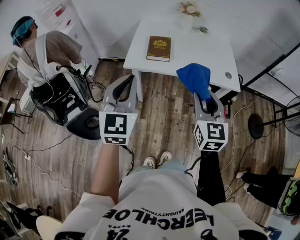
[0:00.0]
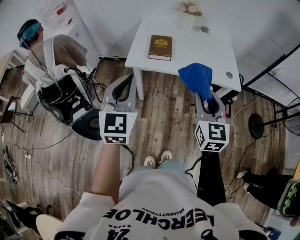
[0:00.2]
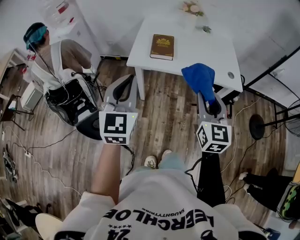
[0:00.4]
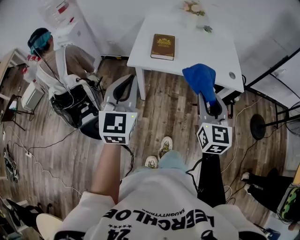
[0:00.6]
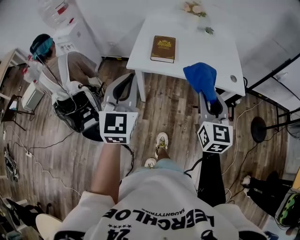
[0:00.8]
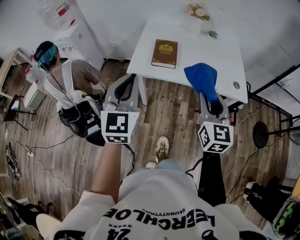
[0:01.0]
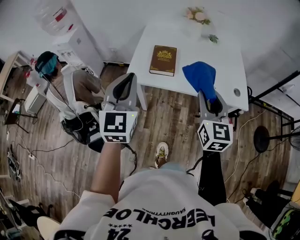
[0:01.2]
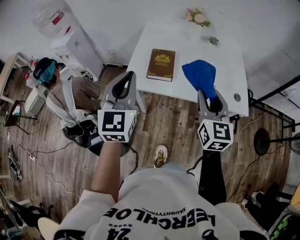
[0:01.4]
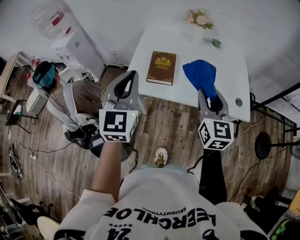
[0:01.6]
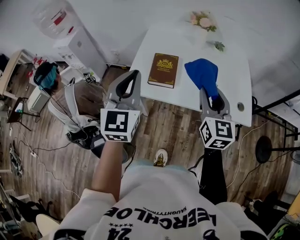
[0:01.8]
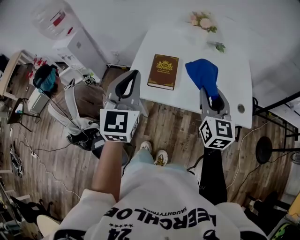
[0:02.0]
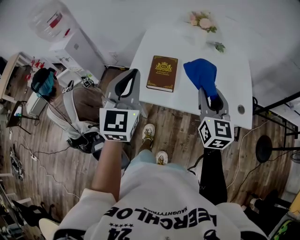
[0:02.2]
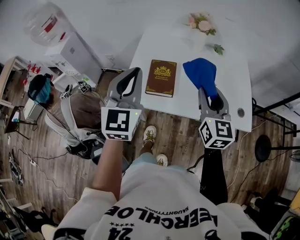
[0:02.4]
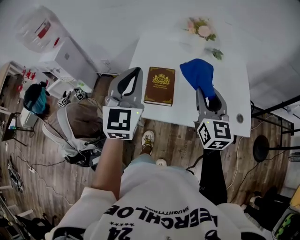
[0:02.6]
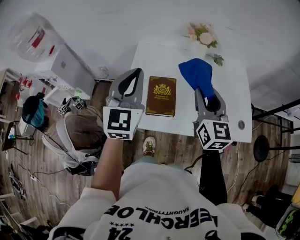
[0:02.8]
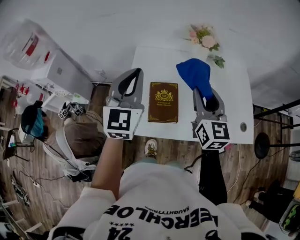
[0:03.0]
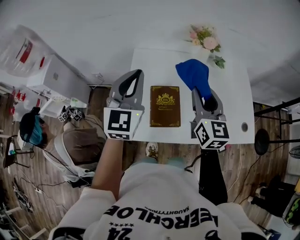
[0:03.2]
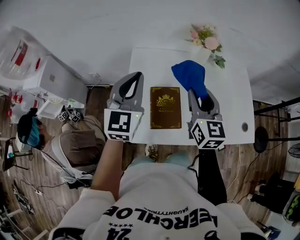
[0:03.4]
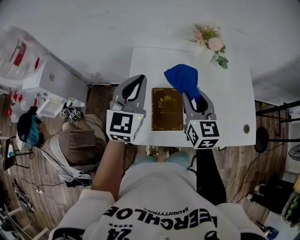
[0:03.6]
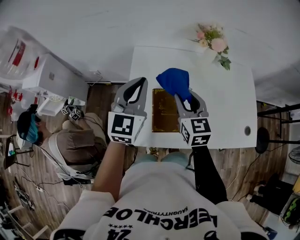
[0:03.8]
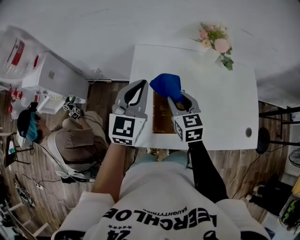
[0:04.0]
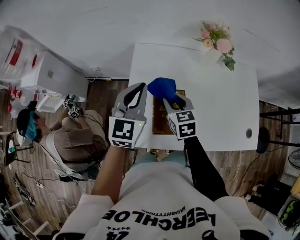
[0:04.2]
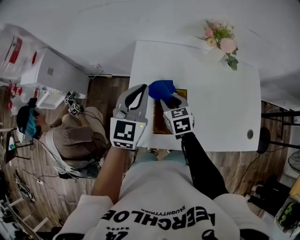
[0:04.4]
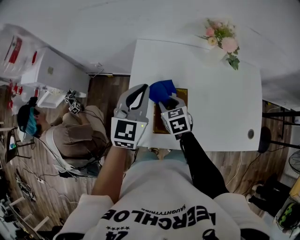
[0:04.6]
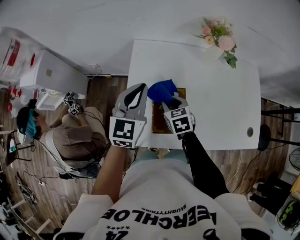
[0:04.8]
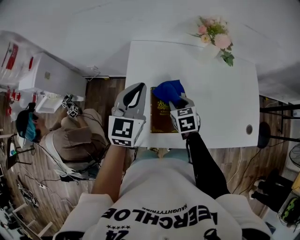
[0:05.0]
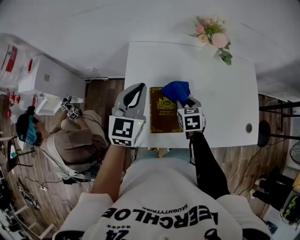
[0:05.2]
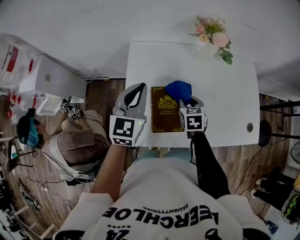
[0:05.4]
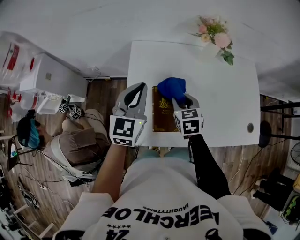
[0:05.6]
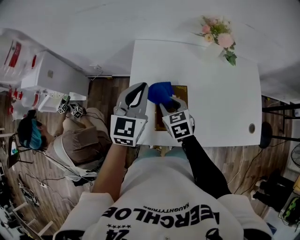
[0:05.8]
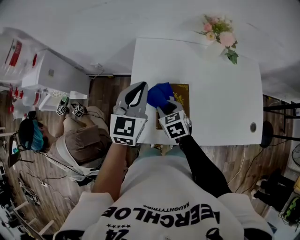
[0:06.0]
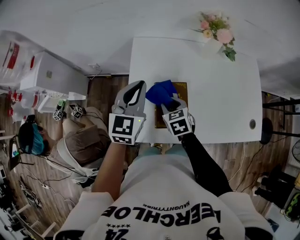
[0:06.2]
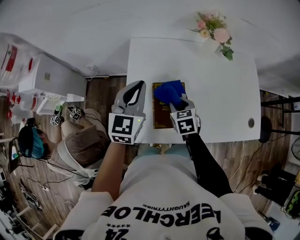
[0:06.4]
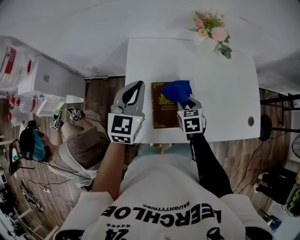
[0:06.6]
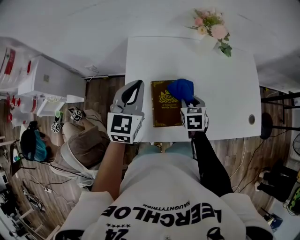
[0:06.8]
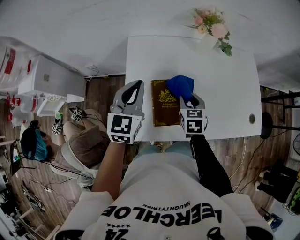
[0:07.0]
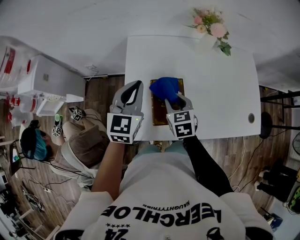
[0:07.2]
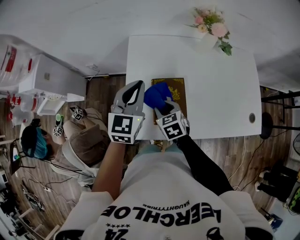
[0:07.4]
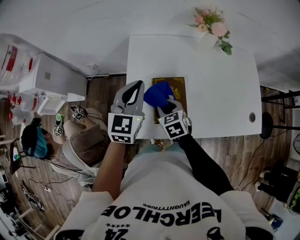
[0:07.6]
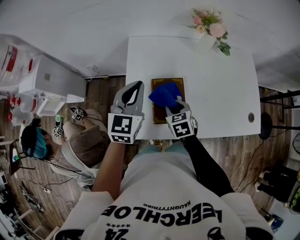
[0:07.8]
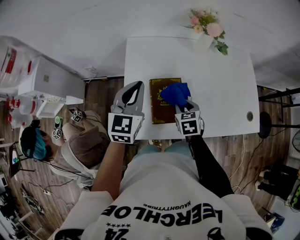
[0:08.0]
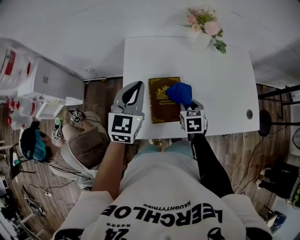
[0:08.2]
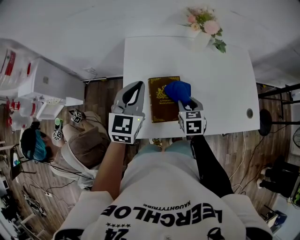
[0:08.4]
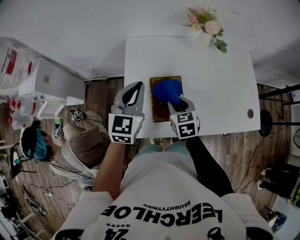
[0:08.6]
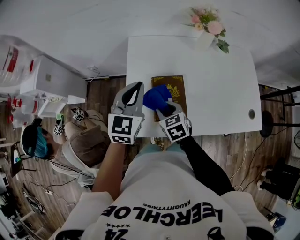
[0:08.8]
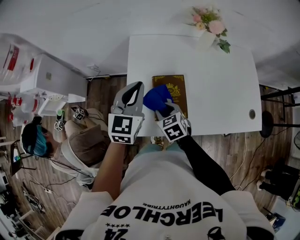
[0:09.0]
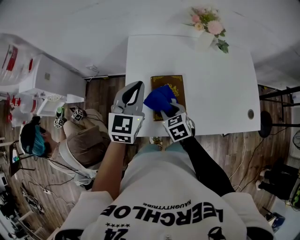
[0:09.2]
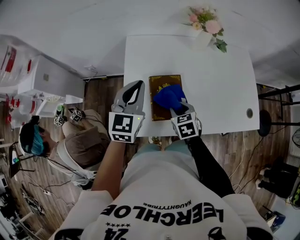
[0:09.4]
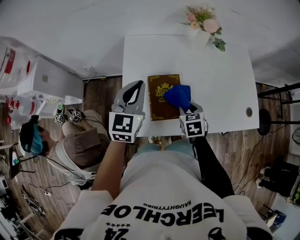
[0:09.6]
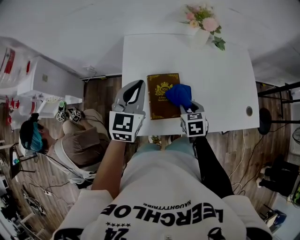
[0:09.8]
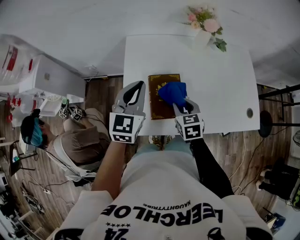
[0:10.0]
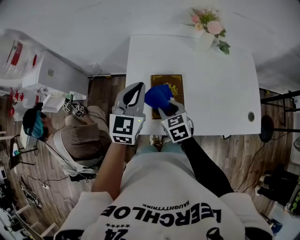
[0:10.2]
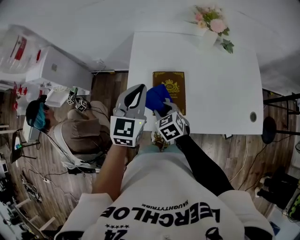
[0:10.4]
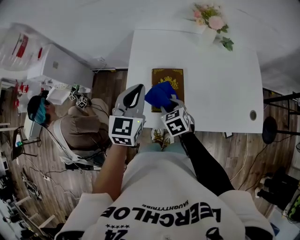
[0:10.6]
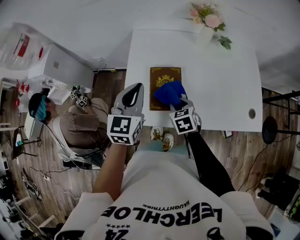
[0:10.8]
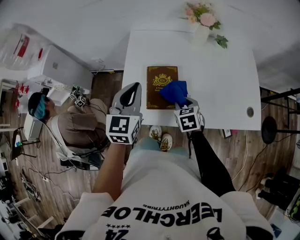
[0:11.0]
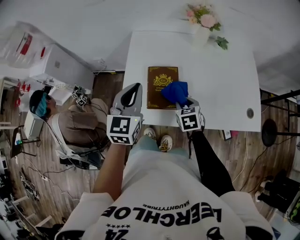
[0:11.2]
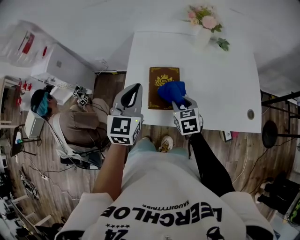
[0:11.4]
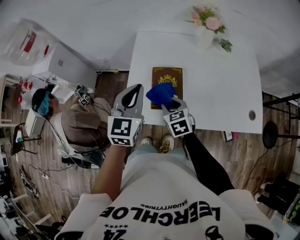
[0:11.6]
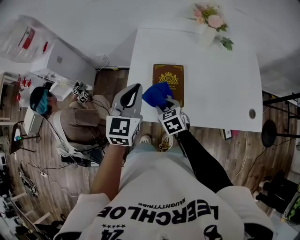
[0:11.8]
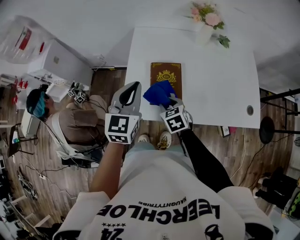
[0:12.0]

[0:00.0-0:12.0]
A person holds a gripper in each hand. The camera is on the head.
0:00.0 to 0:01.6: The grippers both shift forward by about 20 cm.
0:01.6 to 0:03.0: Both grippers move forward, approximately 25 cm.
0:03.0 to 0:04.4: The right gripper moves downward and to the left, about 30 cm, and tilts its fingers some 40 degrees downward. Meanwhile the left gripper goes some 15 cm downward and forward.
0:04.4 to 0:06.0: The right gripper heads backward, covering about 5 cm, and reaches roughly 10 cm to the right, then returns.
0:06.0 to 0:07.6: The right gripper goes to the right and returns, approximately 15 cm each way.
0:07.6 to 0:09.0: The right gripper reaches some 15 cm to the right, then returns.
0:09.0 to 0:10.4: The right gripper moves some 15 cm to the right and comes back.
0:10.4 to 0:12.0: The right gripper travels to the right and back again, roughly 15 cm each way; the left gripper moves backward, roughly 5 cm.

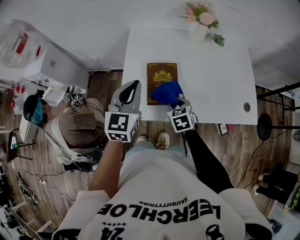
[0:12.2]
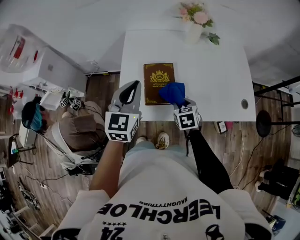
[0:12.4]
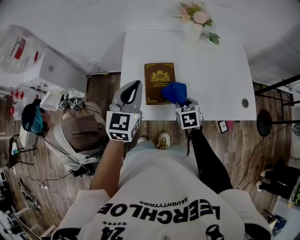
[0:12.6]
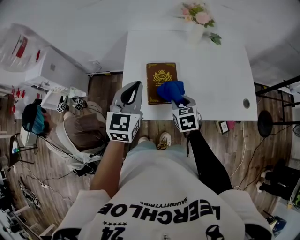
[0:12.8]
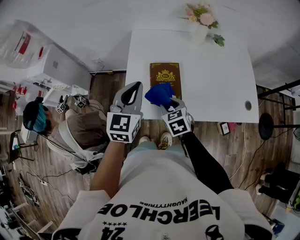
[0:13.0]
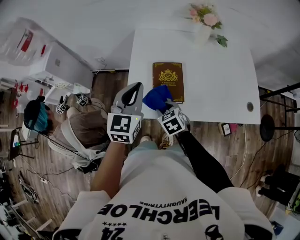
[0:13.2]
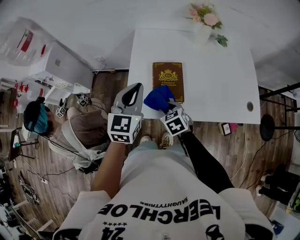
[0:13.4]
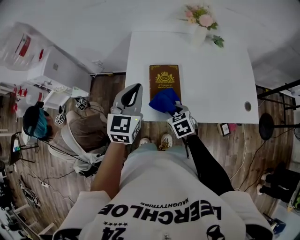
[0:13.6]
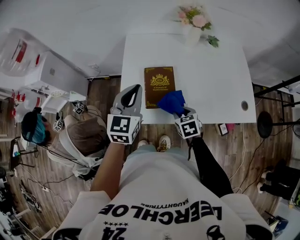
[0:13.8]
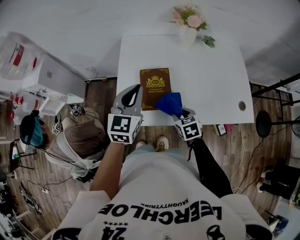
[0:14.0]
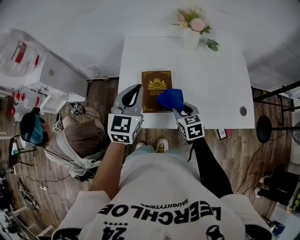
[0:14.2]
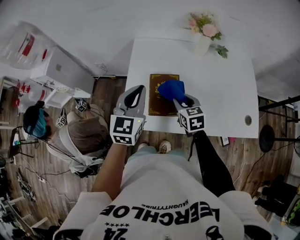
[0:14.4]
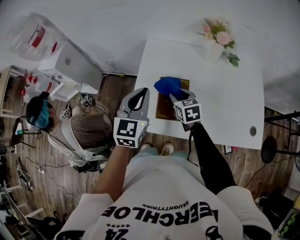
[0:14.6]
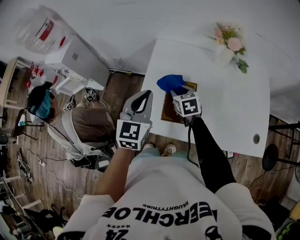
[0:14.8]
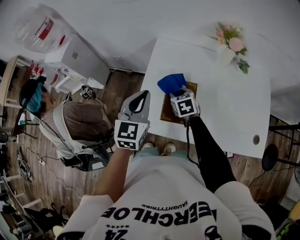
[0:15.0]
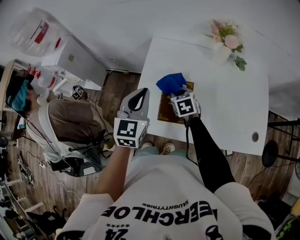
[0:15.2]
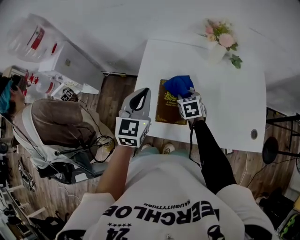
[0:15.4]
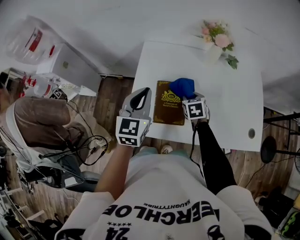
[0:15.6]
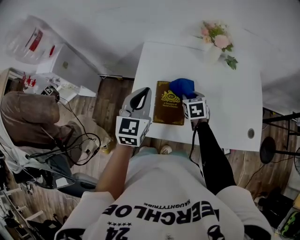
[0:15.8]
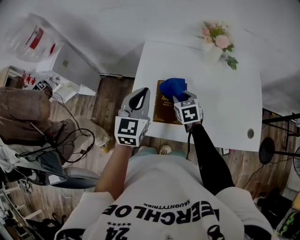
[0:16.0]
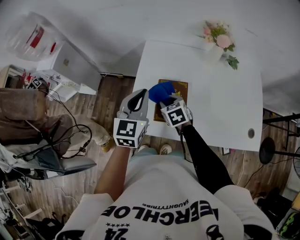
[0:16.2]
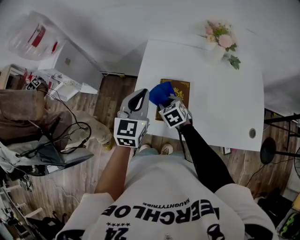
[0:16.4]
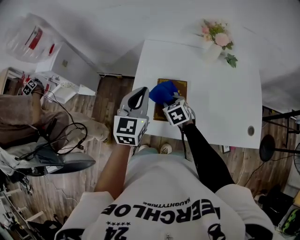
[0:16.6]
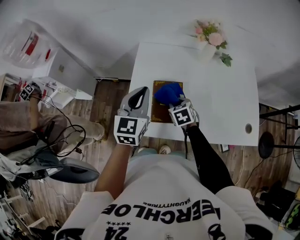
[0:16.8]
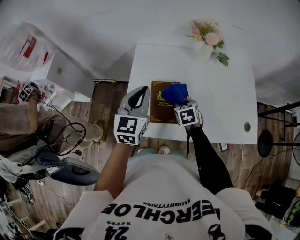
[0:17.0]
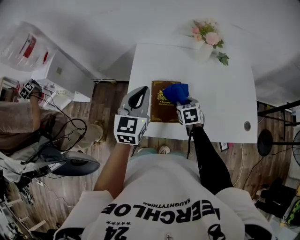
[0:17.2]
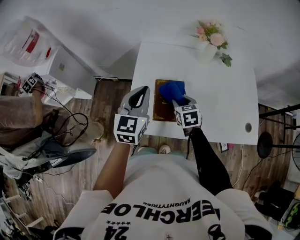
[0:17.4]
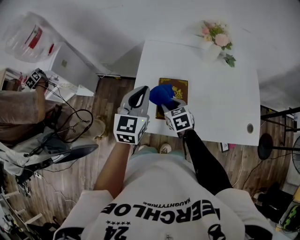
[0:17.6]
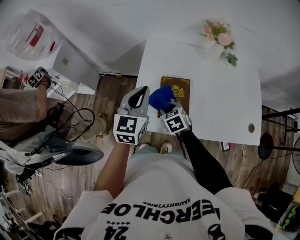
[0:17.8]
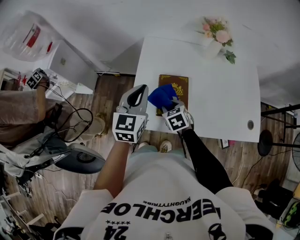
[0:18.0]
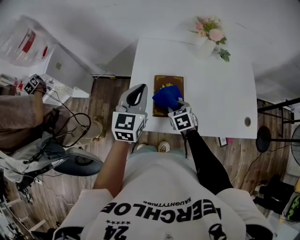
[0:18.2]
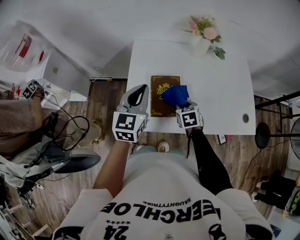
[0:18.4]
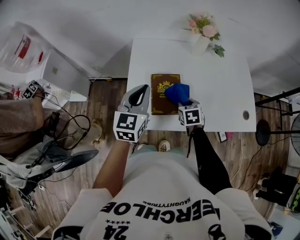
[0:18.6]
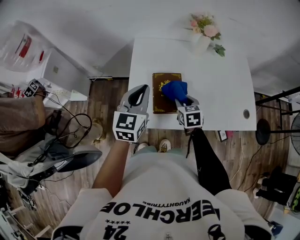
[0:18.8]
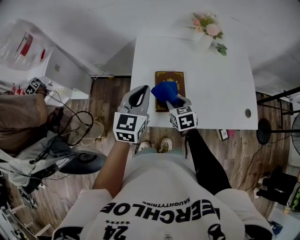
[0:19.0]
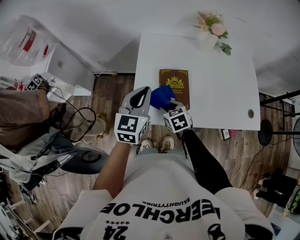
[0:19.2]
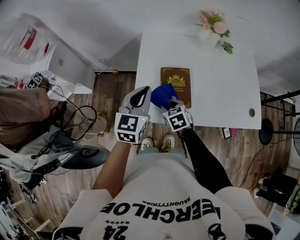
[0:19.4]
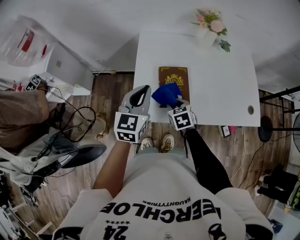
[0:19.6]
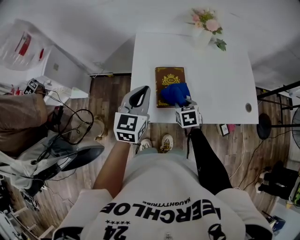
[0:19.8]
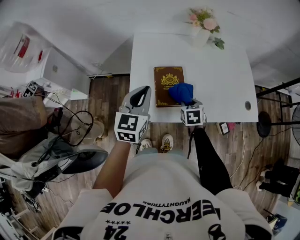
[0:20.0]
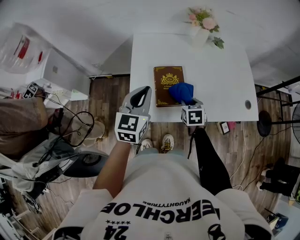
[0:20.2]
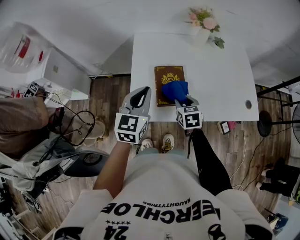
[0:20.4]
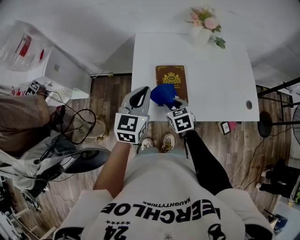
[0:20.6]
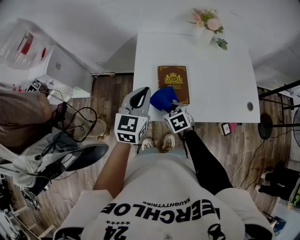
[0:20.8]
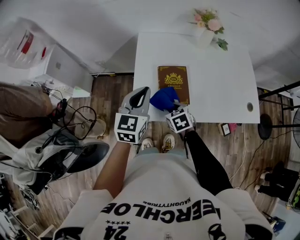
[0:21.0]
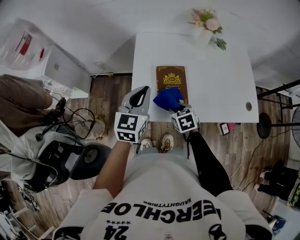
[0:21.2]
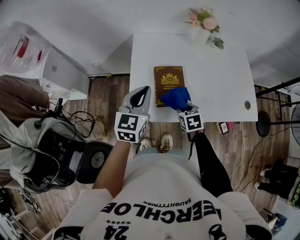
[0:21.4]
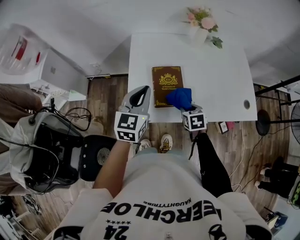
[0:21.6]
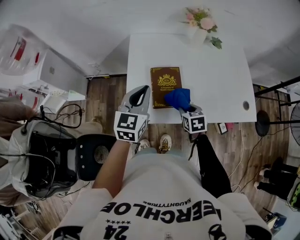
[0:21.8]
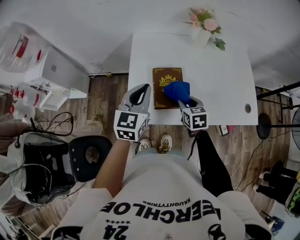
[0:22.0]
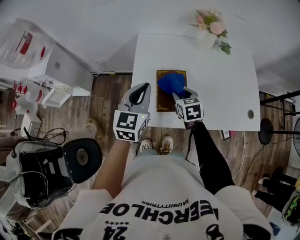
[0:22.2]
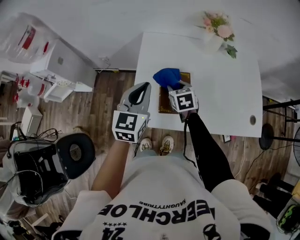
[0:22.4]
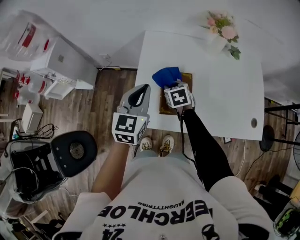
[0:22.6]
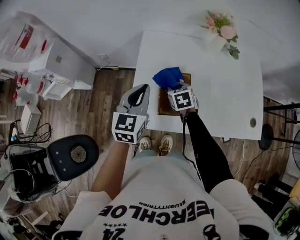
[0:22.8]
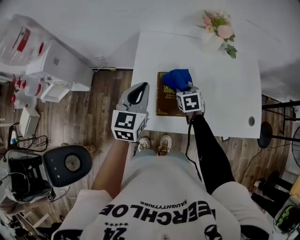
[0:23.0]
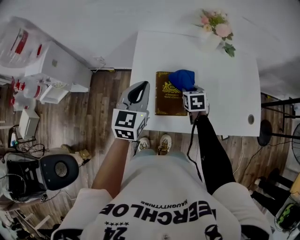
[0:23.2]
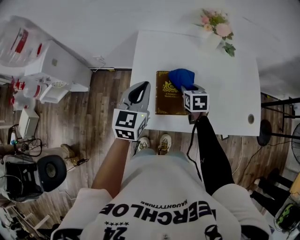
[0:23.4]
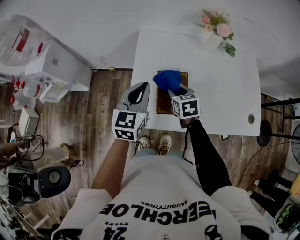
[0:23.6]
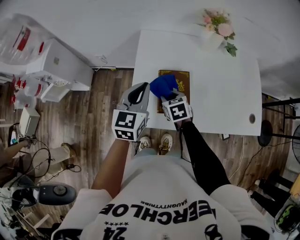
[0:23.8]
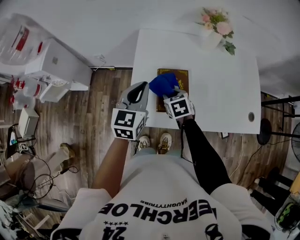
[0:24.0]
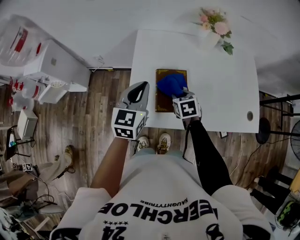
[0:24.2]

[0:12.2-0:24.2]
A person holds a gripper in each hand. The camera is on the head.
0:12.2 to 0:13.8: The right gripper goes left and right, about 15 cm each way, reversing 2 times.
0:13.8 to 0:15.2: The right gripper travels forward by some 20 cm; the left gripper shifts by some 5 cm.
0:15.2 to 0:16.6: The right gripper shifts approximately 5 cm backward, and moves approximately 10 cm to the right and comes back.
0:16.6 to 0:18.2: The right gripper moves left and right over approximately 15 cm, changing direction 2 times.
0:18.2 to 0:19.8: The right gripper swings left and right, approximately 15 cm each way, with 2 reversals.
0:19.8 to 0:21.2: The right gripper goes left and right, roughly 10 cm each way, reversing 2 times.
0:21.2 to 0:22.6: The right gripper is displaced forward by some 15 cm.
0:22.6 to 0:24.2: The right gripper moves left and right over approximately 10 cm, changing direction 2 times.
